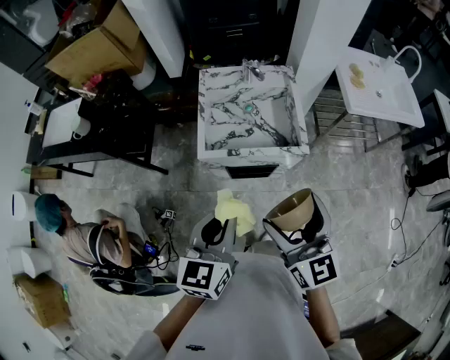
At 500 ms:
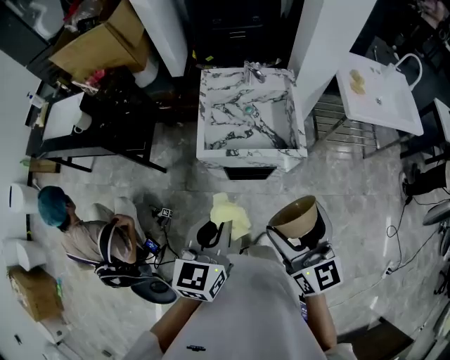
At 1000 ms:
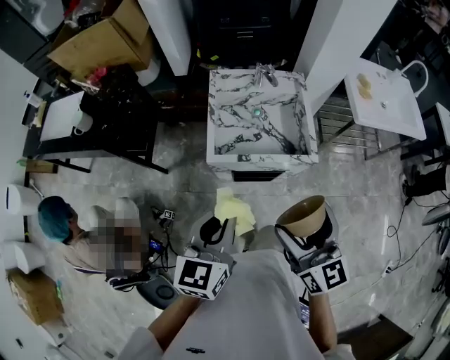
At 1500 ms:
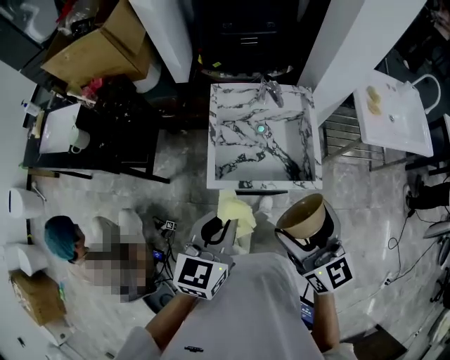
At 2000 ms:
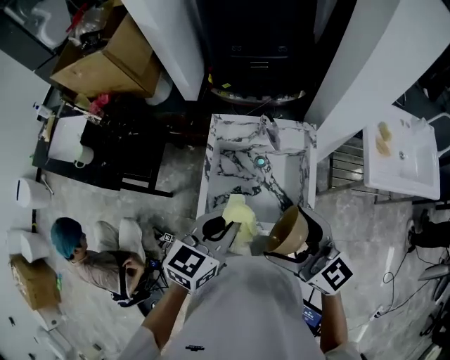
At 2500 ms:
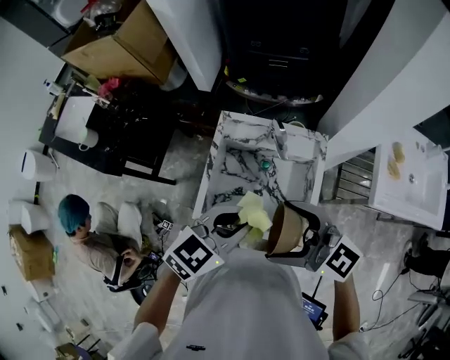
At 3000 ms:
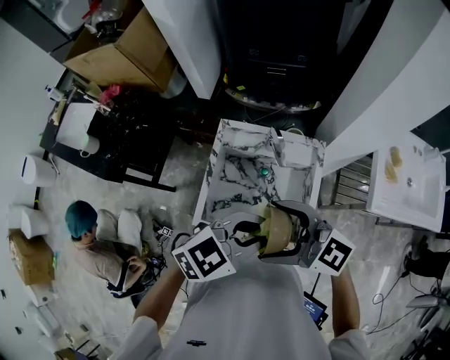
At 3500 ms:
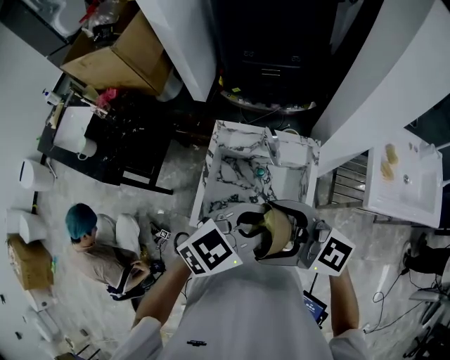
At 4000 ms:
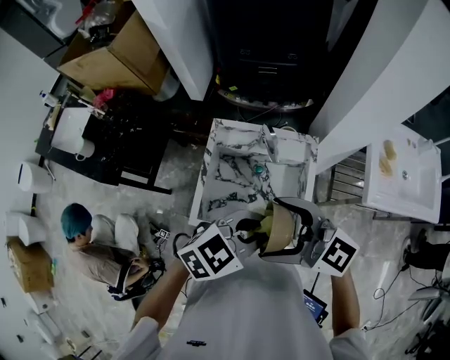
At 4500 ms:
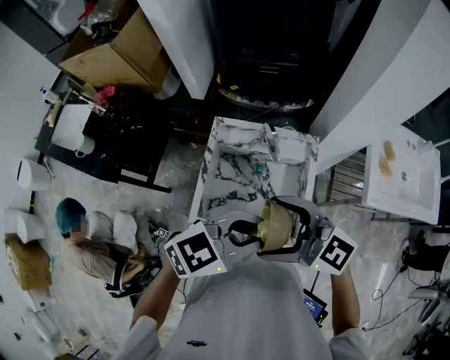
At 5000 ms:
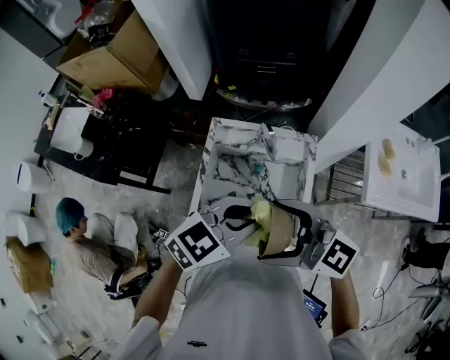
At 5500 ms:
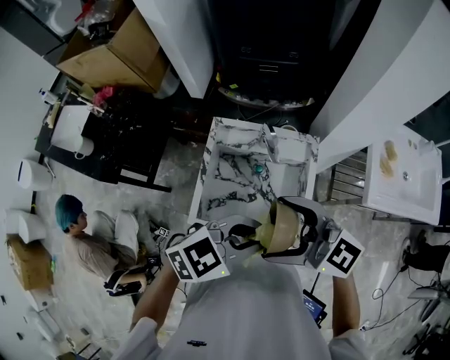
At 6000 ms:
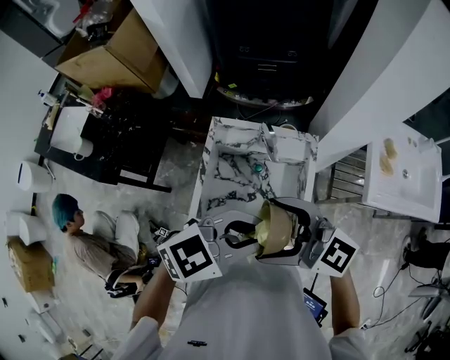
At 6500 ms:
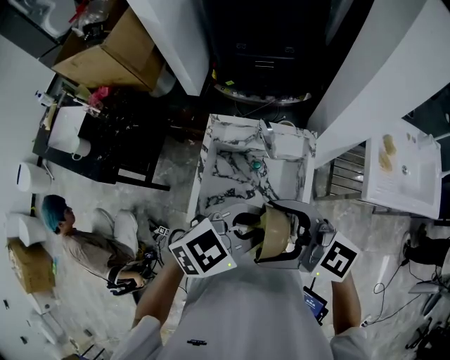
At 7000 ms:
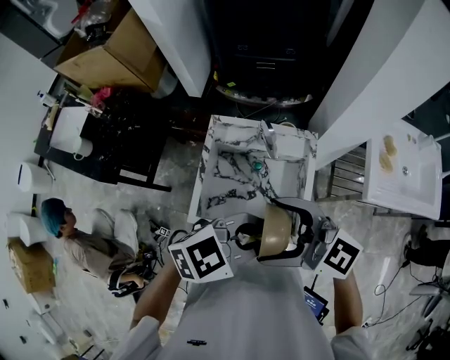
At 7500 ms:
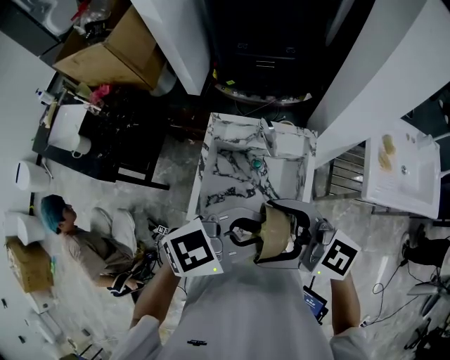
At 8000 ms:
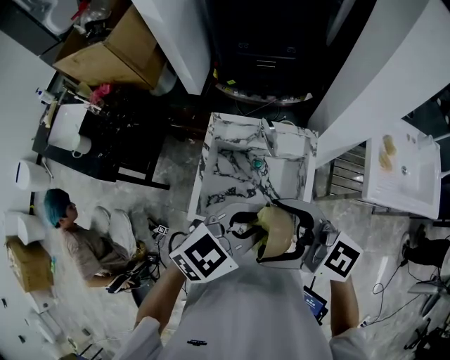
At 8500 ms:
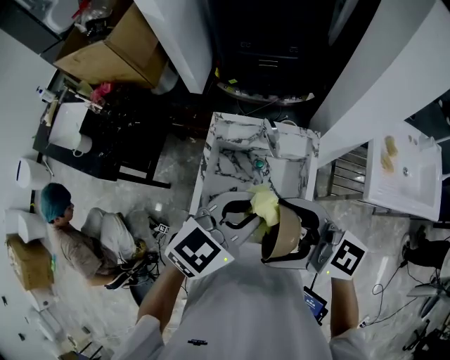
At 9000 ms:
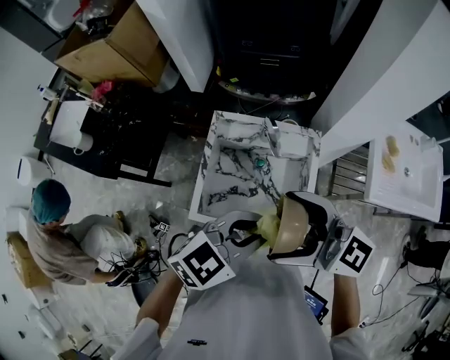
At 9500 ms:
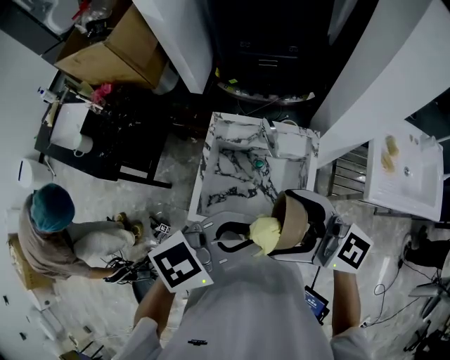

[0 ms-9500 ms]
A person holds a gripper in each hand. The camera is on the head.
0 ms to 2000 ms: The two grippers go some 25 cm forward. The right gripper rotates approximately 30 degrees.
2000 ms to 4000 ms: The left gripper changes place by approximately 10 cm, and changes its angle by some 30 degrees. The right gripper turns by some 30 degrees.
4000 ms to 5500 ms: The grippers stay close to where they were, moving slightly.
5500 ms to 7500 ms: The left gripper moves roughly 5 cm.

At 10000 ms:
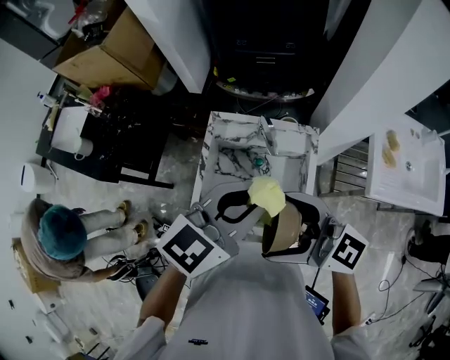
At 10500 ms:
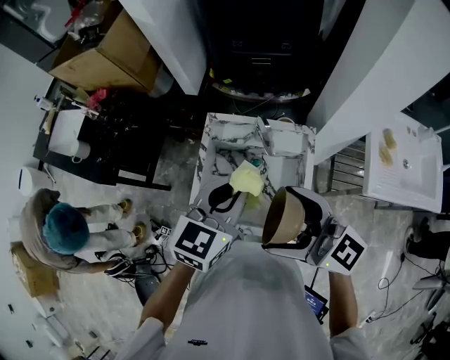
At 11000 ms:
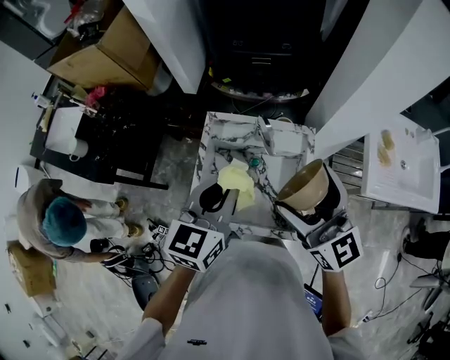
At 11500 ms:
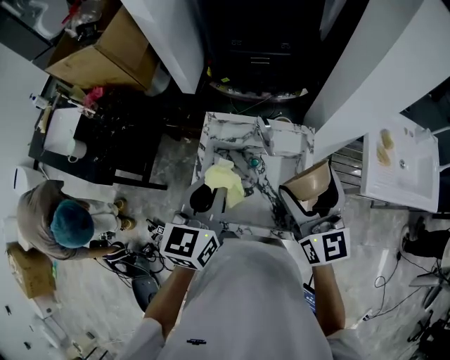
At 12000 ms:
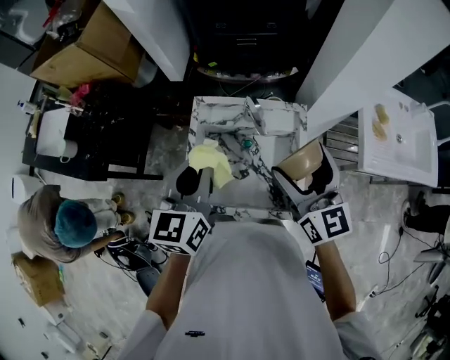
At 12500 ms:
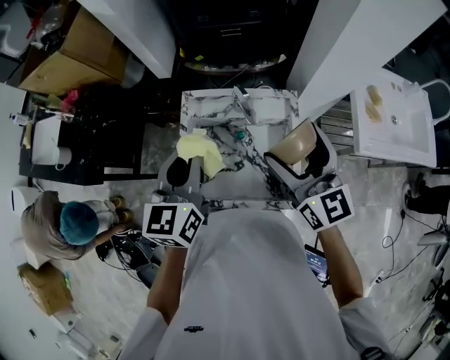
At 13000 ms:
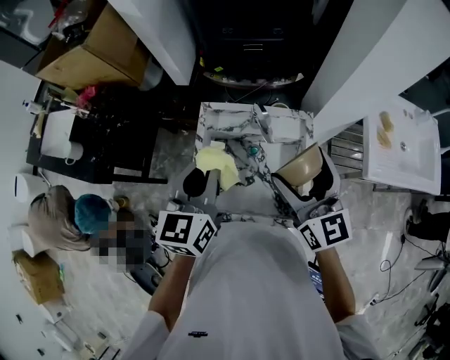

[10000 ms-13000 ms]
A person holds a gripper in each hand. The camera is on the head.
10000 ms to 11500 ms: The left gripper goes roughly 10 cm to the left and downward, and changes its angle by some 30 degrees, while the right gripper shifts approximately 15 cm forward and to the right, and swivels some 50 degrees.
11500 ms to 13000 ms: There are only small adjustments of the grippers.

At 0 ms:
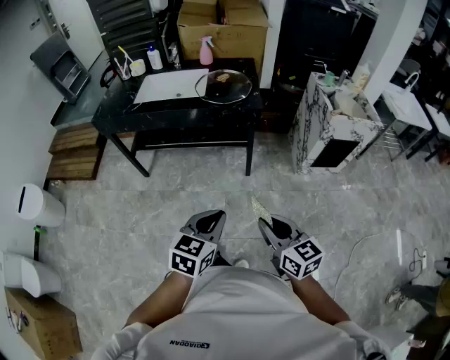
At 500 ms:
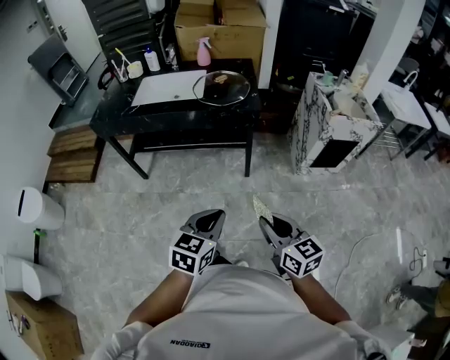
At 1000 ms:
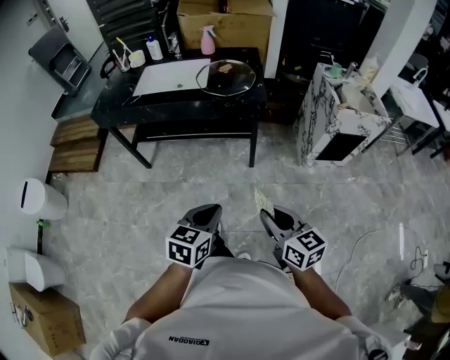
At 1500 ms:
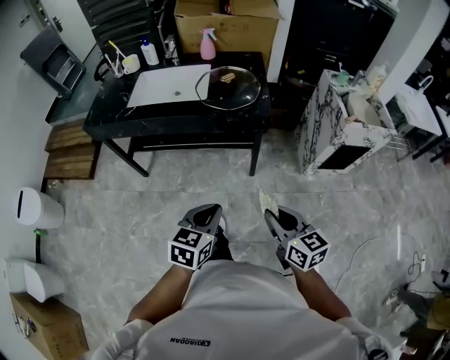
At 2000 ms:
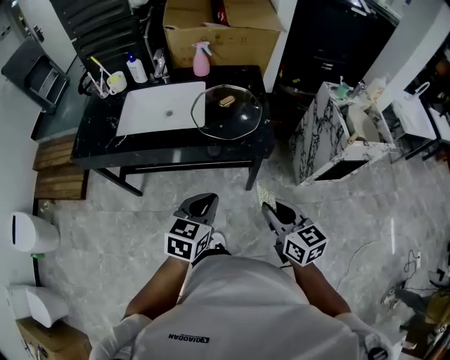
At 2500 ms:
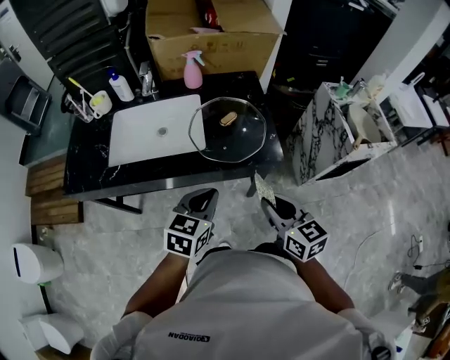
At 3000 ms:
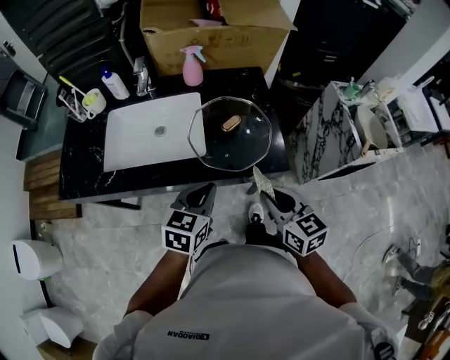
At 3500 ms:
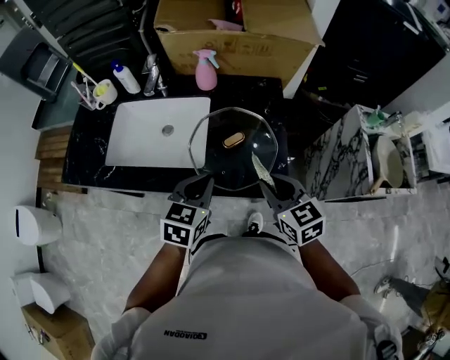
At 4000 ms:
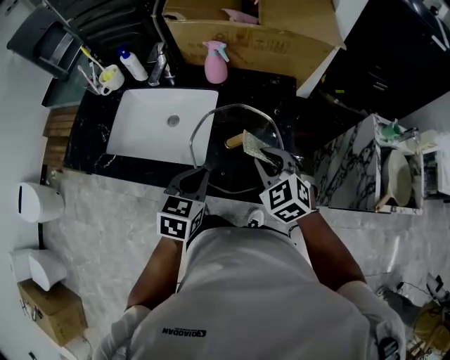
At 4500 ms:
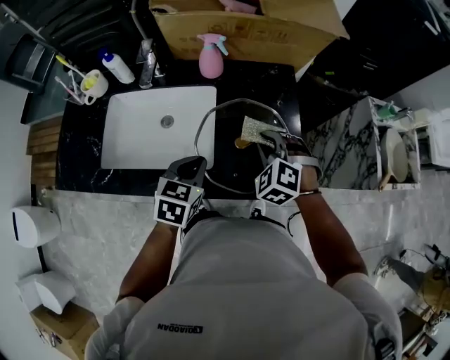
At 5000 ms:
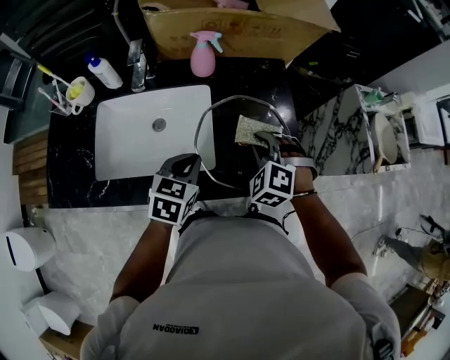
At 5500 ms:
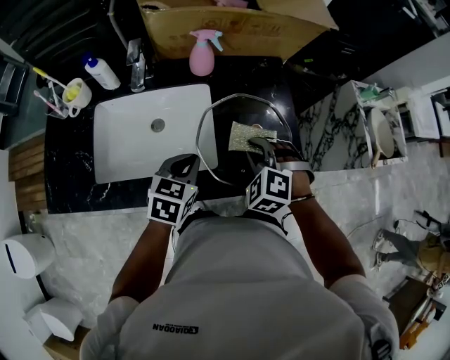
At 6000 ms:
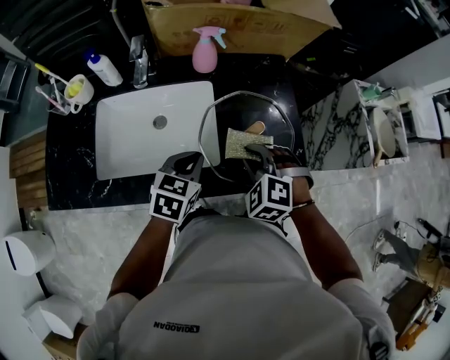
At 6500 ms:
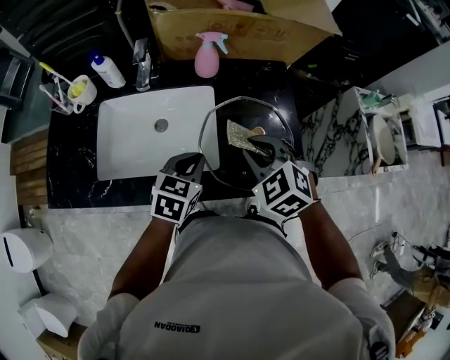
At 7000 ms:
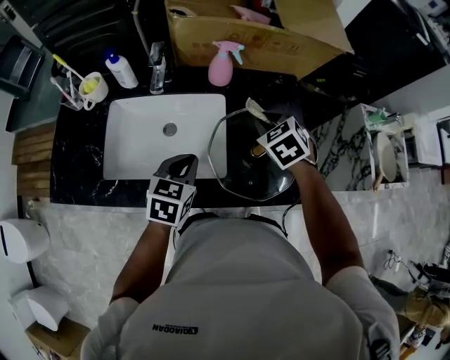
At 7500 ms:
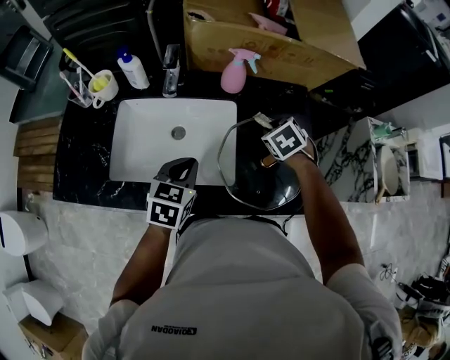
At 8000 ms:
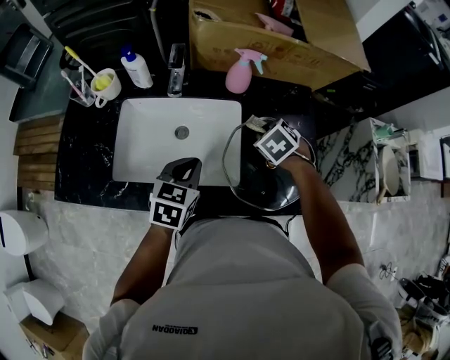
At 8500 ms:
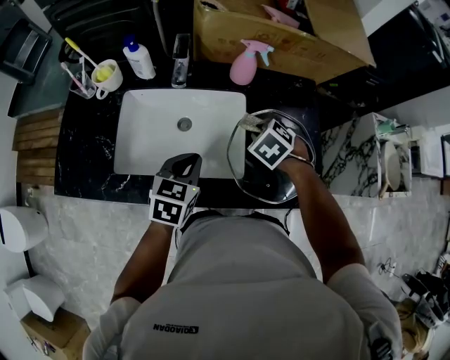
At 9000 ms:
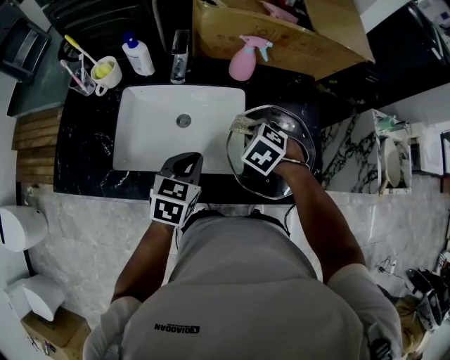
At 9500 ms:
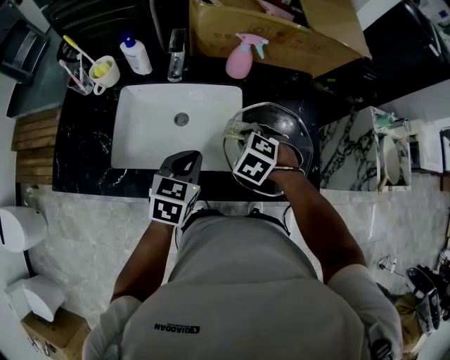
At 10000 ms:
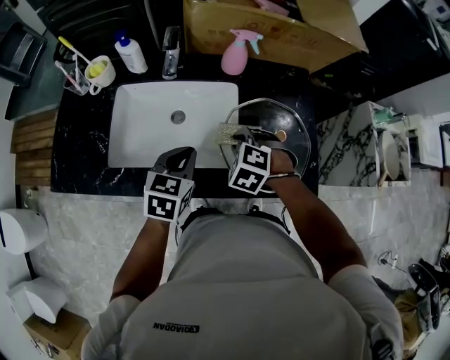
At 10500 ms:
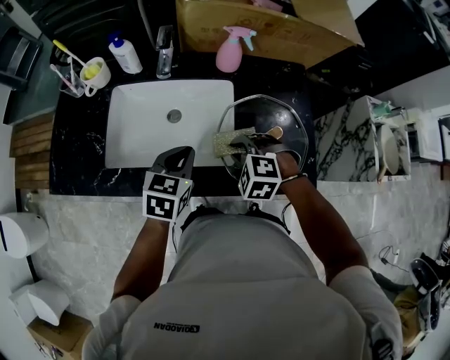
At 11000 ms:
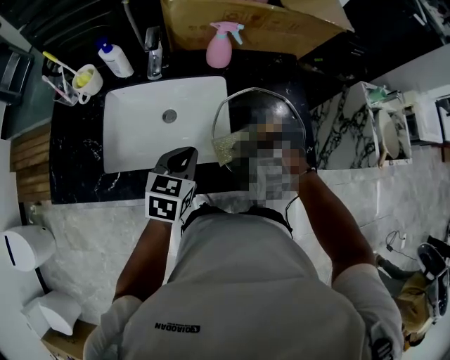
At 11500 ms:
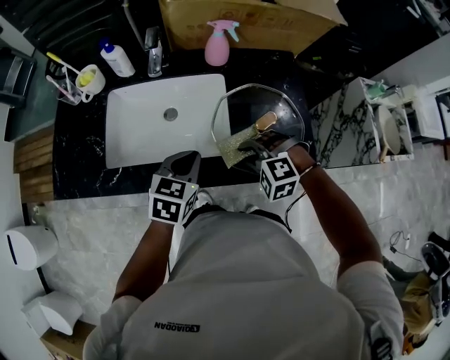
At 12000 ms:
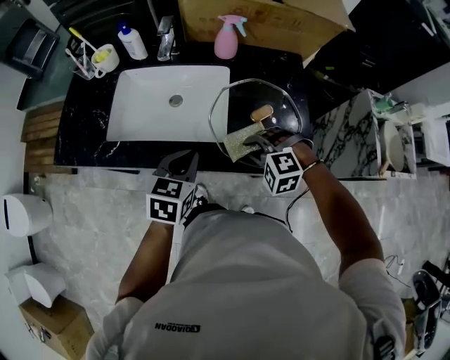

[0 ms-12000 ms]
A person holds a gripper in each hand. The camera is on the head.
0 ms to 2000 ms: Both grippers travel together forward, roughly 35 cm.
2000 ms to 4000 ms: Both grippers move forward, roughly 35 cm. The right gripper twists roughly 50 degrees counterclockwise, seen from behind.
4000 ms to 6000 ms: The right gripper moves some 10 cm, and changes its angle by approximately 30 degrees, while the left gripper changes place by about 10 cm, and changes its angle by approximately 20 degrees.
6000 ms to 8000 ms: The left gripper is displaced to the left by approximately 10 cm; the right gripper travels forward by about 15 cm, and turns by roughly 30 degrees.
8000 ms to 10000 ms: The right gripper goes approximately 10 cm backward and to the left, and rotates about 30 degrees.
10000 ms to 12000 ms: The right gripper goes some 15 cm backward and to the right, and turns by roughly 30 degrees, while the left gripper moves backward, about 10 cm.

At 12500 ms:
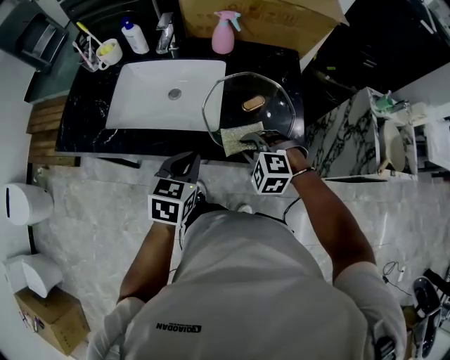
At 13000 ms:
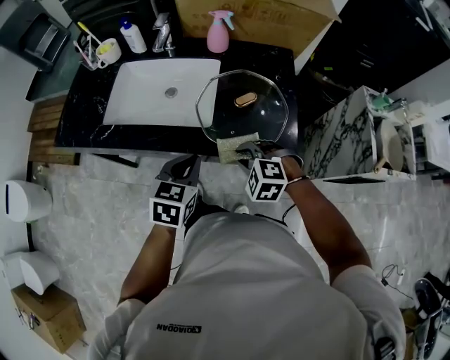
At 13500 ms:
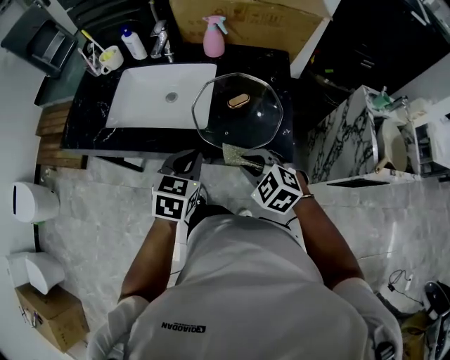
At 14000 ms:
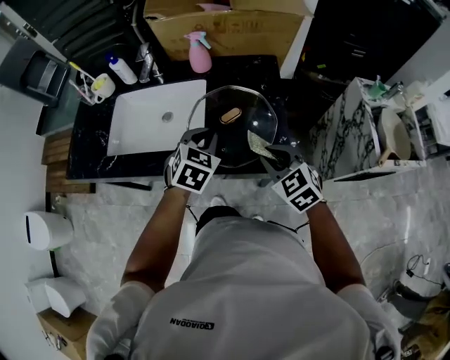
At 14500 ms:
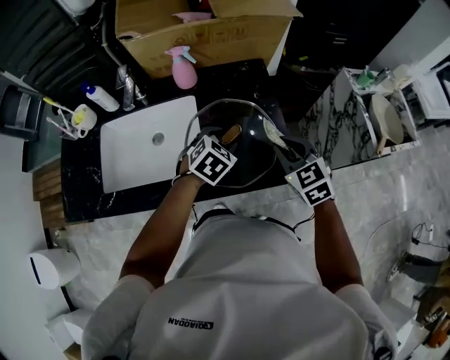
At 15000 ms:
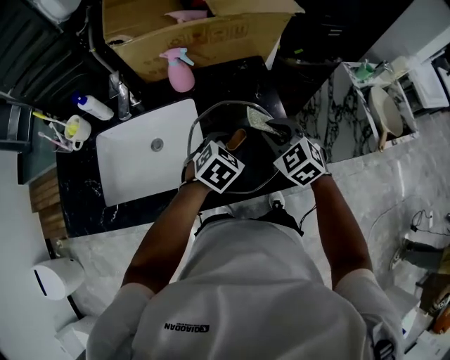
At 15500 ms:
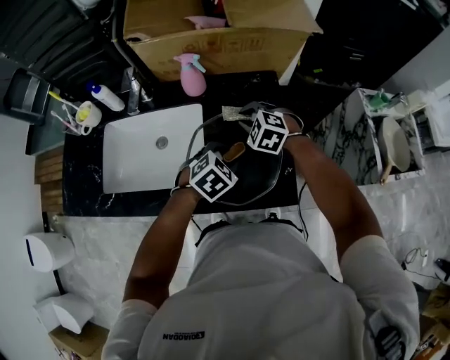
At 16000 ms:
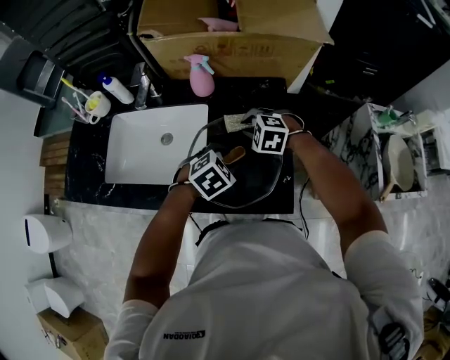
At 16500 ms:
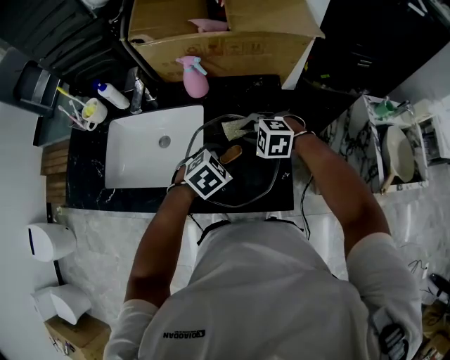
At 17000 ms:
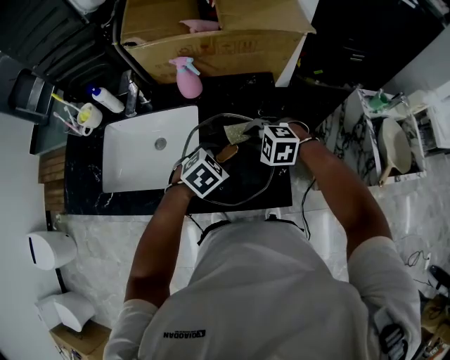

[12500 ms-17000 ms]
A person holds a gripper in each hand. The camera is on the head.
12500 ms to 14500 ms: The right gripper ends up about 20 cm from where it was, and twists some 50 degrees clockwise, seen from behind, while the left gripper shifts by some 25 cm, changes its angle by about 40 degrees, and opens.
14500 ms to 17000 ms: The right gripper travels forward, downward and to the left by about 15 cm, and rotates about 60 degrees.
